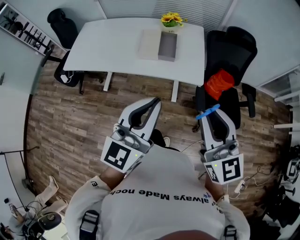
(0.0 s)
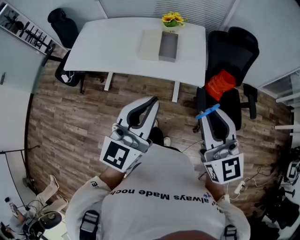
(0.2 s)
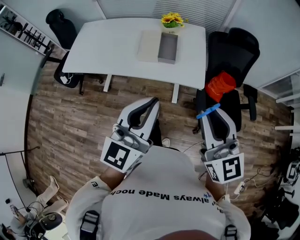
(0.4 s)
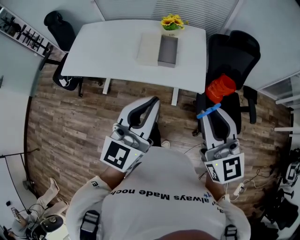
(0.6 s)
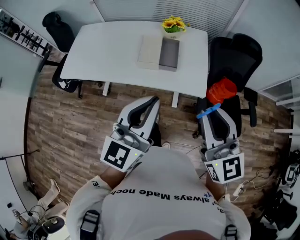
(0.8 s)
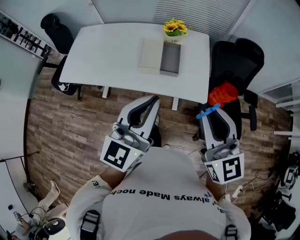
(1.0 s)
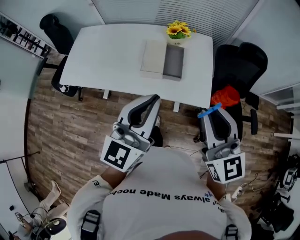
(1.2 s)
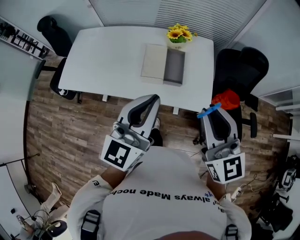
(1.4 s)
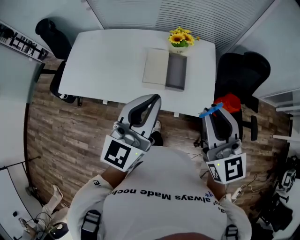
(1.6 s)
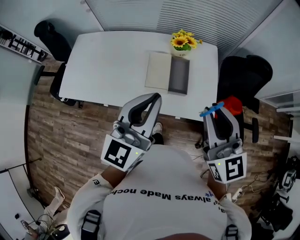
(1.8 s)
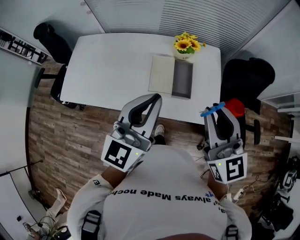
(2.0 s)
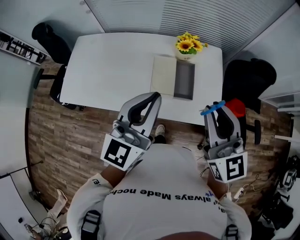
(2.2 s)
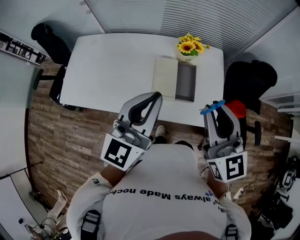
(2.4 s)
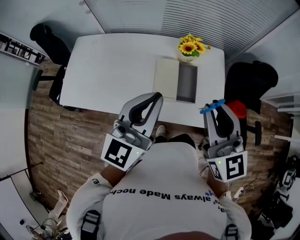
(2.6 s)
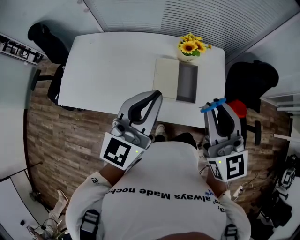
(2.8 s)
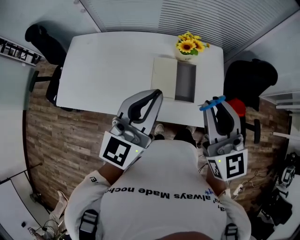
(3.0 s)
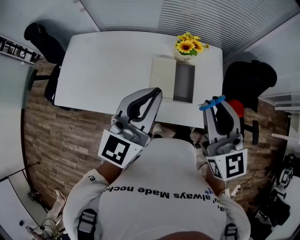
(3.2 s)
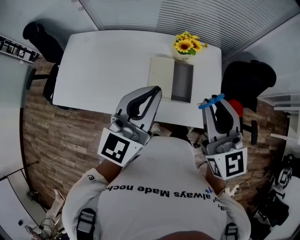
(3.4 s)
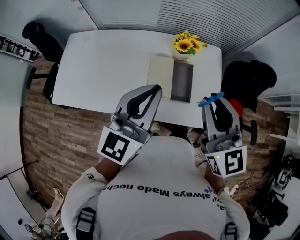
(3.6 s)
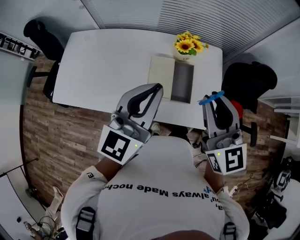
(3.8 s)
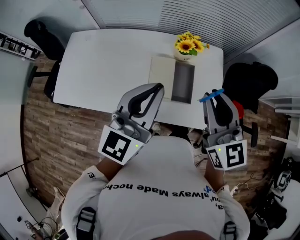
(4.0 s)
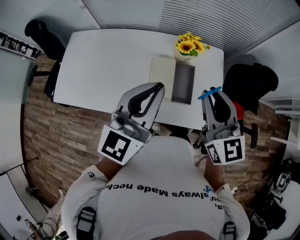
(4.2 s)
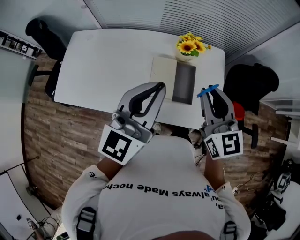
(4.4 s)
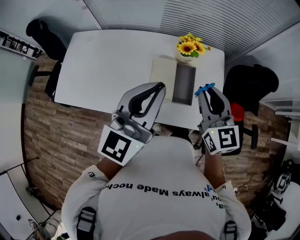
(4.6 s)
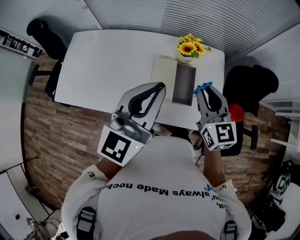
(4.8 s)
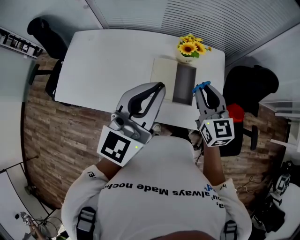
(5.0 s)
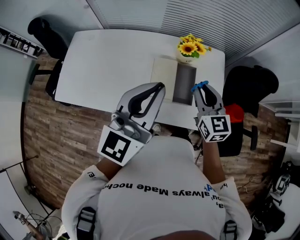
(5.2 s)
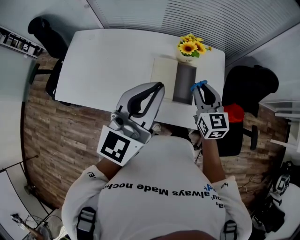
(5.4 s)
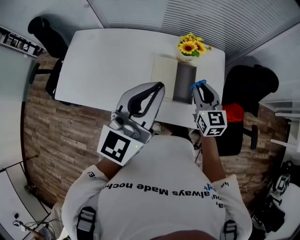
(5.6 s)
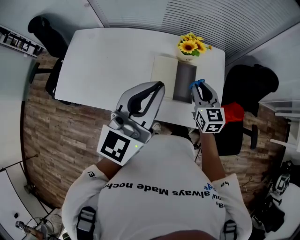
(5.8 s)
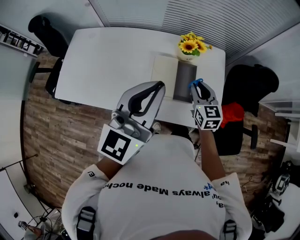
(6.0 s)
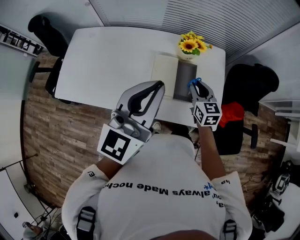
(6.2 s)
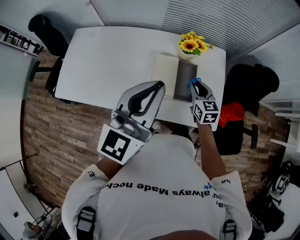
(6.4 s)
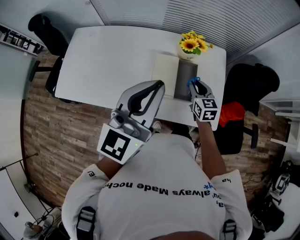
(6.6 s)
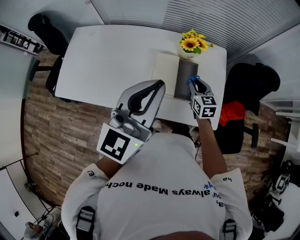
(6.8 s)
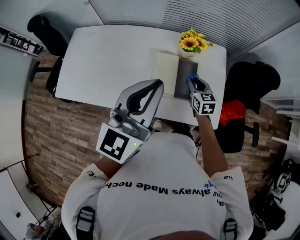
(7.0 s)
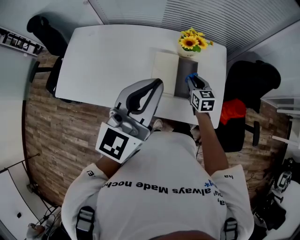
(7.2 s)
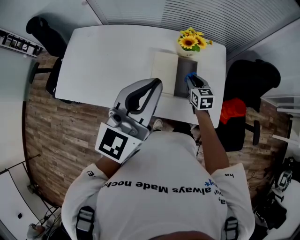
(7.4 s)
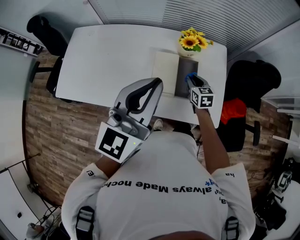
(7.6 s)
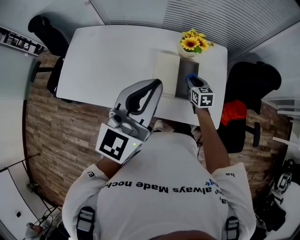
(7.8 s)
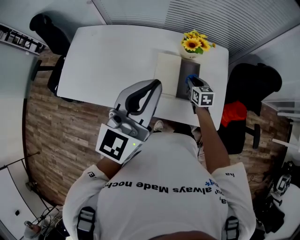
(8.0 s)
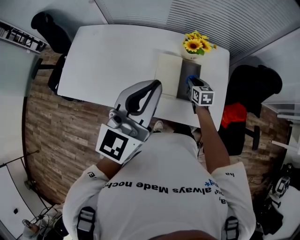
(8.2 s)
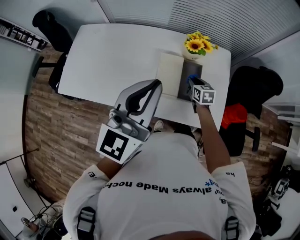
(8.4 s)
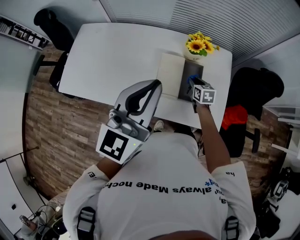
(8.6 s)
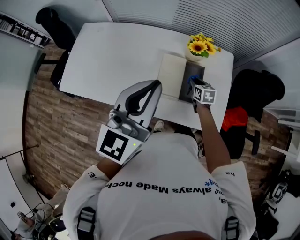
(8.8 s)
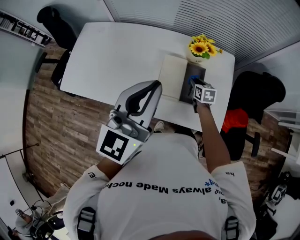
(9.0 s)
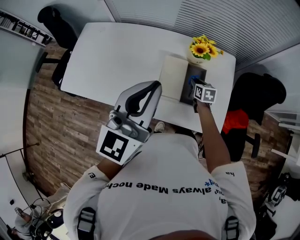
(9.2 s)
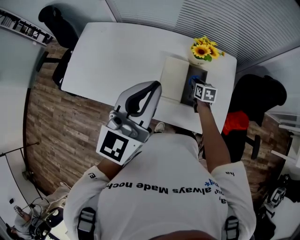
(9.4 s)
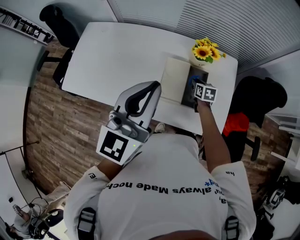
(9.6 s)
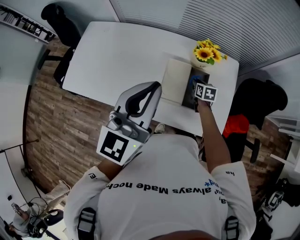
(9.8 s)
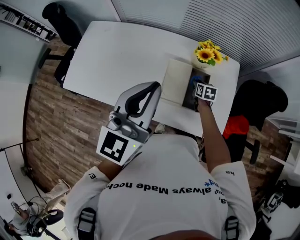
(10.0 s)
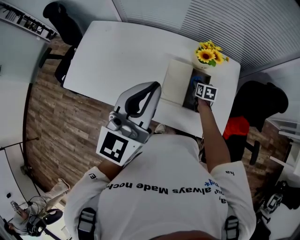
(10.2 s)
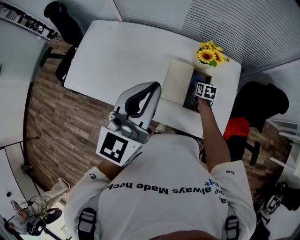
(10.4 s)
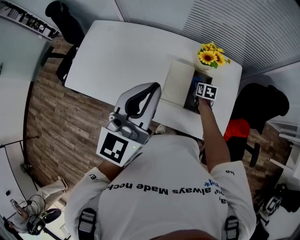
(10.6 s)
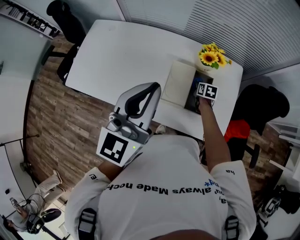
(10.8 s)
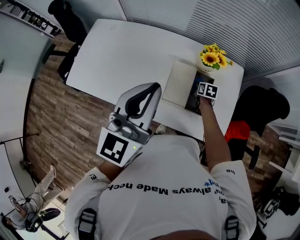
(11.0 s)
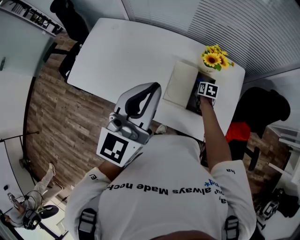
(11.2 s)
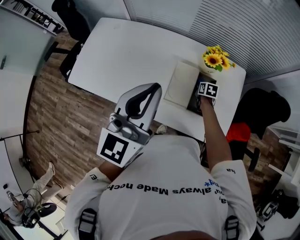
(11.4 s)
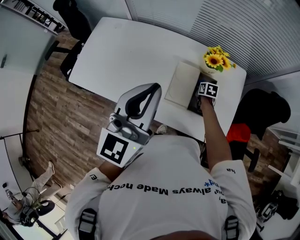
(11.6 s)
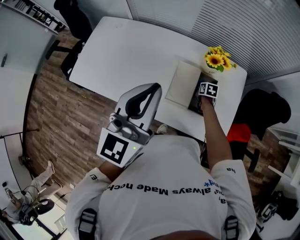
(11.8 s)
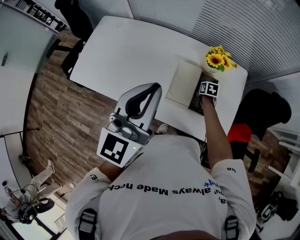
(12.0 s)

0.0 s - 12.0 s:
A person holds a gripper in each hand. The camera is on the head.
0.0 s - 1.6 s: The grippers both shift forward by about 25 cm.
1.6 s - 3.0 s: Both grippers move forward and to the left, some 15 cm.
3.0 s - 4.4 s: The right gripper goes roughly 10 cm forward and downward.
4.4 s - 6.0 s: The right gripper travels downward by some 15 cm.
6.0 s - 7.6 s: The right gripper shifts approximately 10 cm downward.
7.6 s - 9.0 s: The right gripper moves roughly 5 cm.
9.0 s - 10.4 s: The right gripper shifts by about 5 cm.
10.4 s - 12.0 s: The grippers make only small movements.

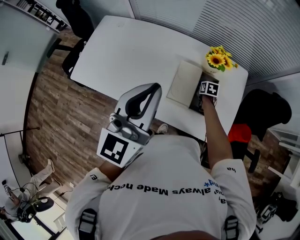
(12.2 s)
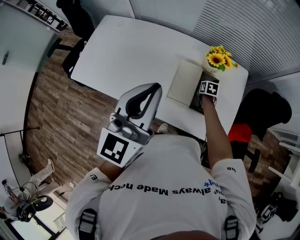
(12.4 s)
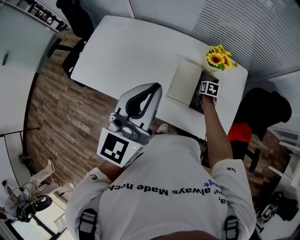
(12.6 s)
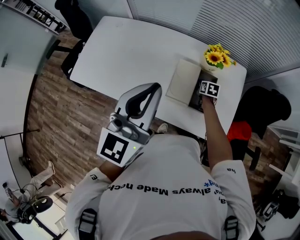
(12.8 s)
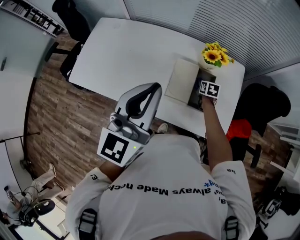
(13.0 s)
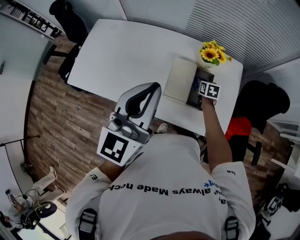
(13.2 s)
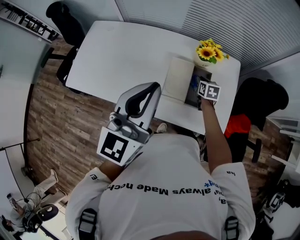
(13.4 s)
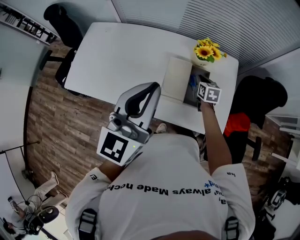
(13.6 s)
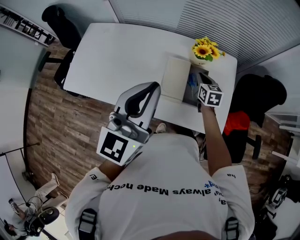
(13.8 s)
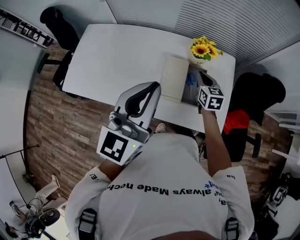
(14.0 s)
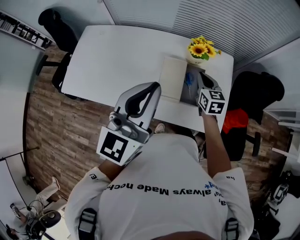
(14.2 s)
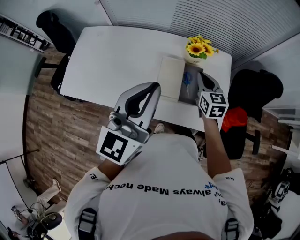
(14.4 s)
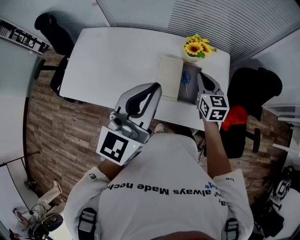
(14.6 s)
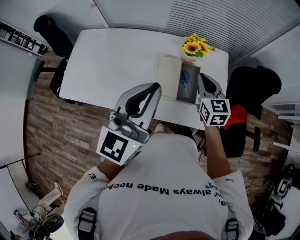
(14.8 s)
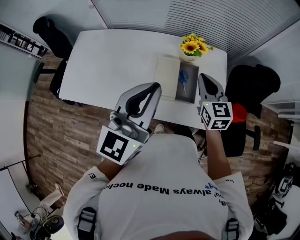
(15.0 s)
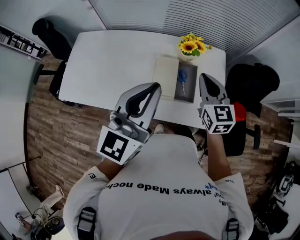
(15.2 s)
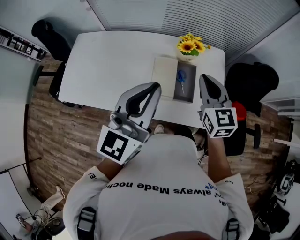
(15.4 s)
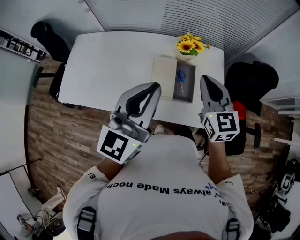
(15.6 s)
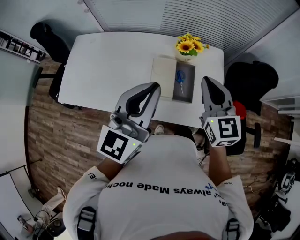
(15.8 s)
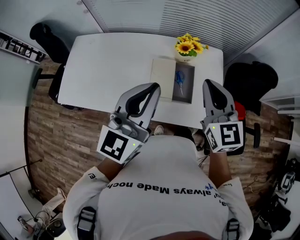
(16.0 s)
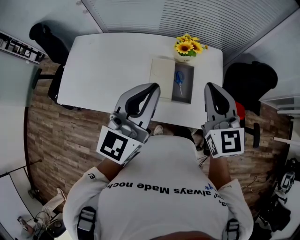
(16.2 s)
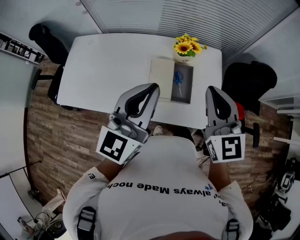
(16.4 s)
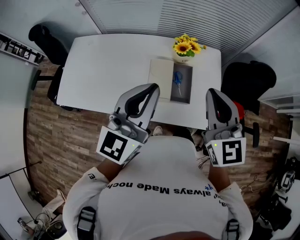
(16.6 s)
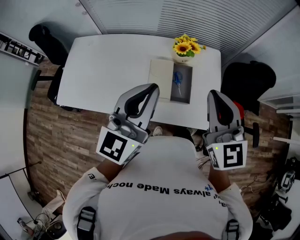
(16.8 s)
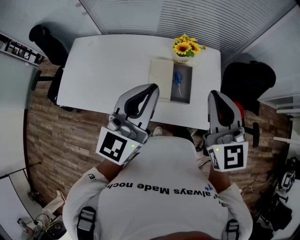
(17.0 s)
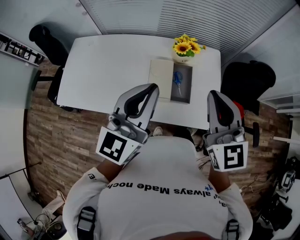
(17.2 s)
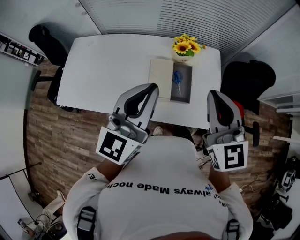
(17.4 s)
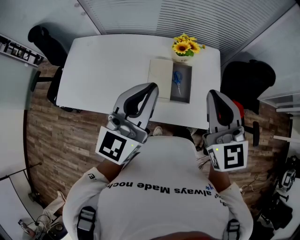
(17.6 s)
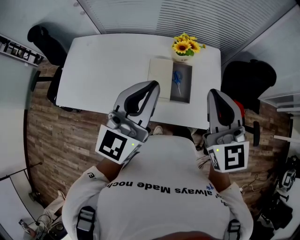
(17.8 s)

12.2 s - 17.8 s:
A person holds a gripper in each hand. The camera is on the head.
12.2 s - 13.6 s: The right gripper goes roughly 15 cm upward, and swivels some 20 degrees.
13.6 s - 15.0 s: The right gripper goes roughly 20 cm upward and backward, and turns by approximately 30 degrees.
15.0 s - 16.4 s: The right gripper goes about 15 cm upward and backward.
16.4 s - 17.8 s: There are only small adjustments of the grippers.

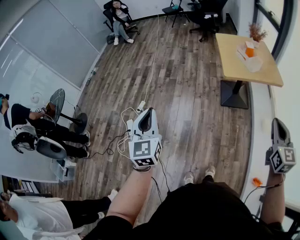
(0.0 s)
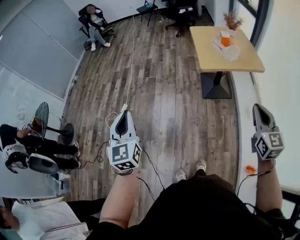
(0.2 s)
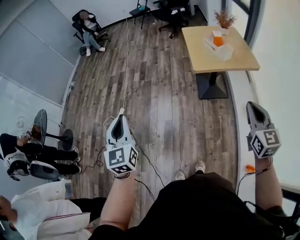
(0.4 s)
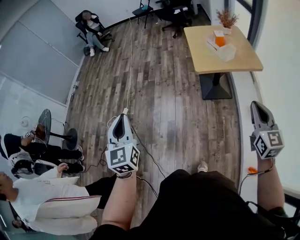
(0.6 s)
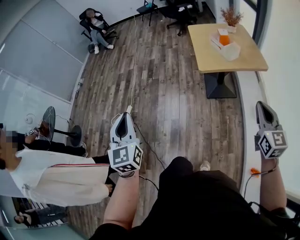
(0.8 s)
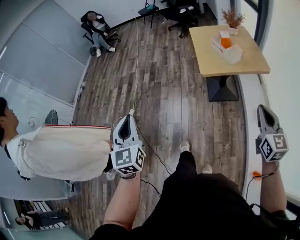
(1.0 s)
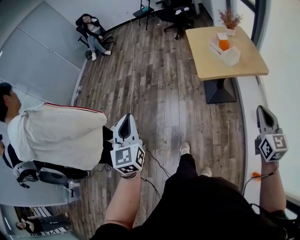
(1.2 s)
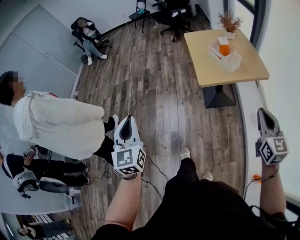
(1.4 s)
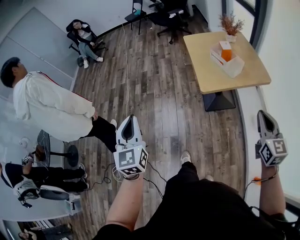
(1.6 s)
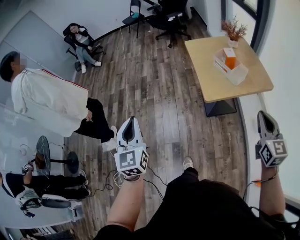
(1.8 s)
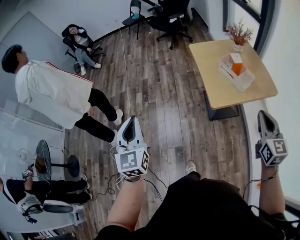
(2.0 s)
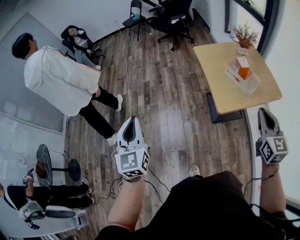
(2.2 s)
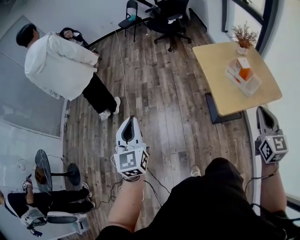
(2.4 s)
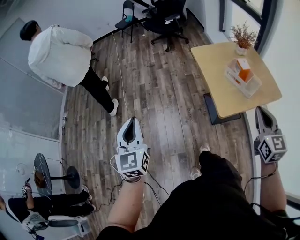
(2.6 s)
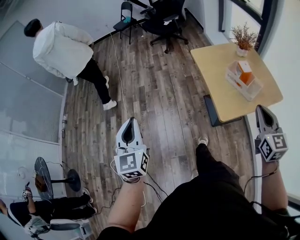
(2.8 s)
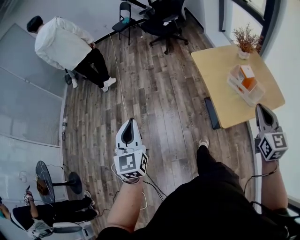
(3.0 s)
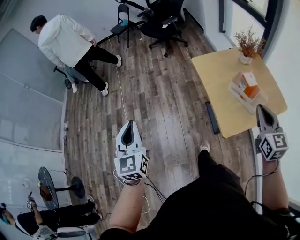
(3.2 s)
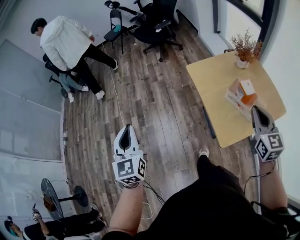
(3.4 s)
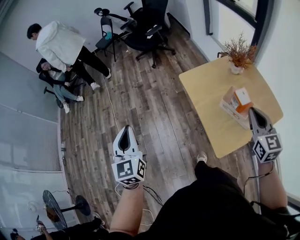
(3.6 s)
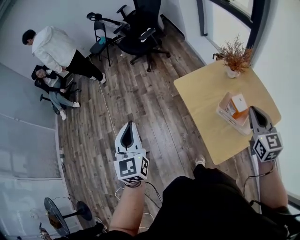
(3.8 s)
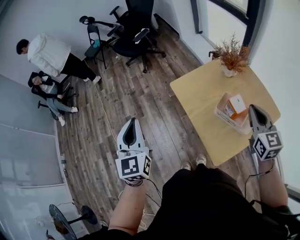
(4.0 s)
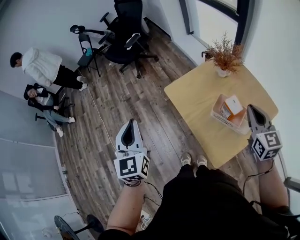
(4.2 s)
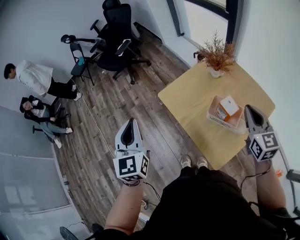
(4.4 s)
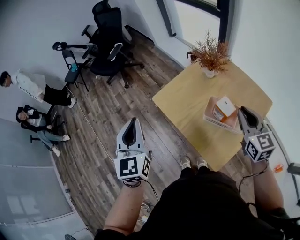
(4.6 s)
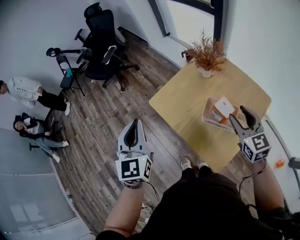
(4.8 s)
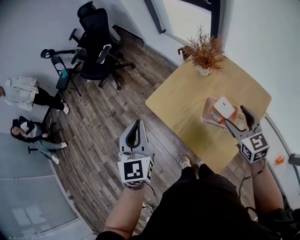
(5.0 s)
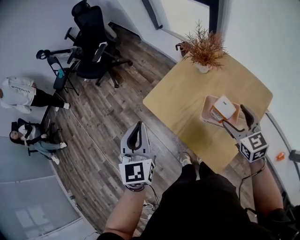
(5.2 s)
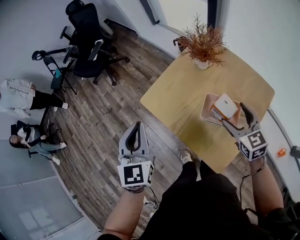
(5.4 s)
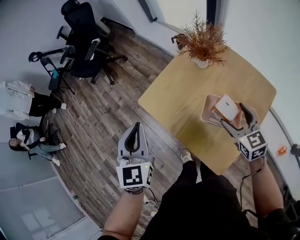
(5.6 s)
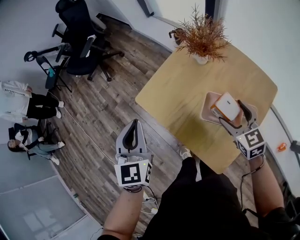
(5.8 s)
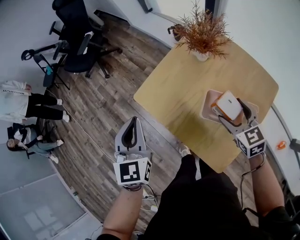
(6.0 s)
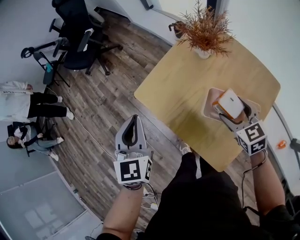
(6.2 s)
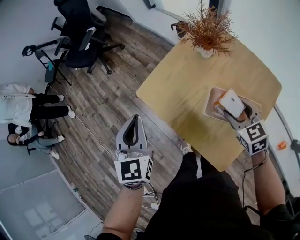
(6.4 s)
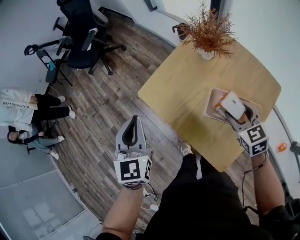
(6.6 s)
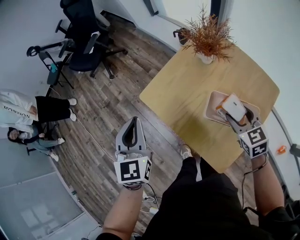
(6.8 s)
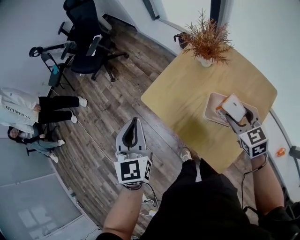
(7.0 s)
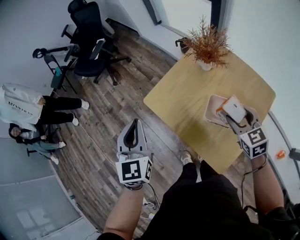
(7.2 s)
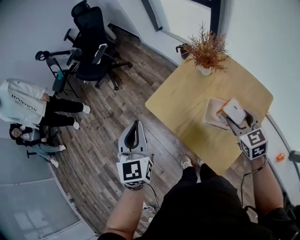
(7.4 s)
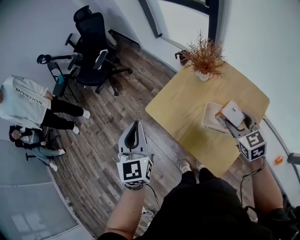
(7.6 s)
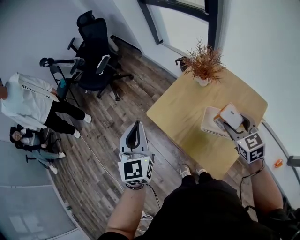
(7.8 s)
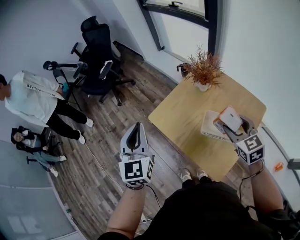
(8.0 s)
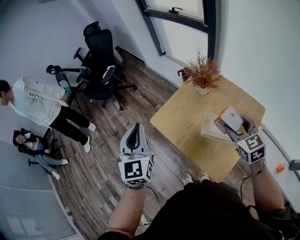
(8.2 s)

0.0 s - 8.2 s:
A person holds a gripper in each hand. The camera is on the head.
0.0 s - 1.6 s: Both grippers travel together forward, some 25 cm.
1.6 s - 3.2 s: The grippers both shift forward by roughly 35 cm.
3.2 s - 5.0 s: The right gripper heads forward and downward, covering some 20 cm, and opens. The left gripper shifts some 40 cm forward and to the right, and turns by some 40 degrees.
5.0 s - 6.6 s: The left gripper is displaced downward and forward by approximately 10 cm. Meanwhile the right gripper goes approximately 10 cm downward.
6.6 s - 8.2 s: The grippers both shift upward by some 15 cm.
